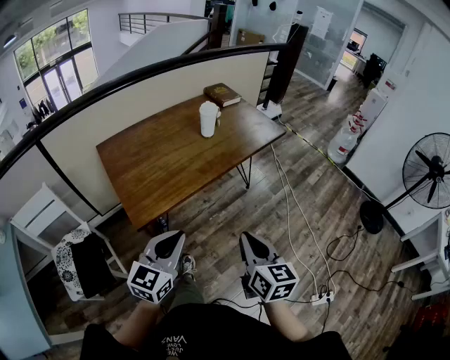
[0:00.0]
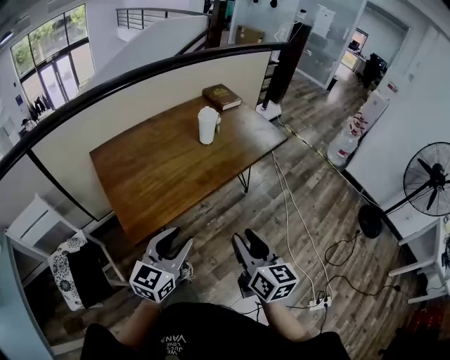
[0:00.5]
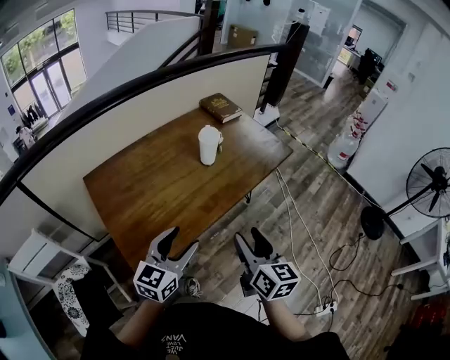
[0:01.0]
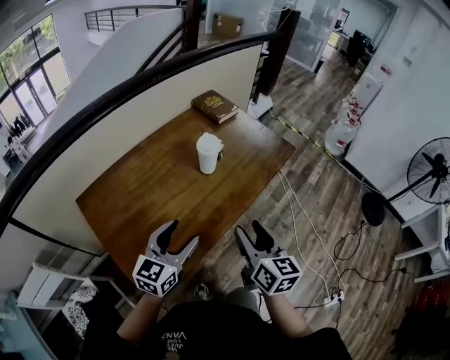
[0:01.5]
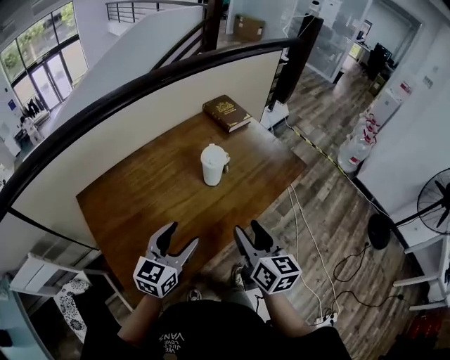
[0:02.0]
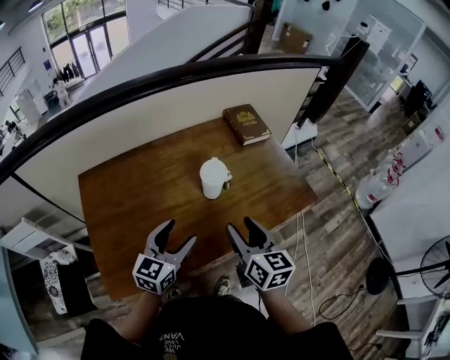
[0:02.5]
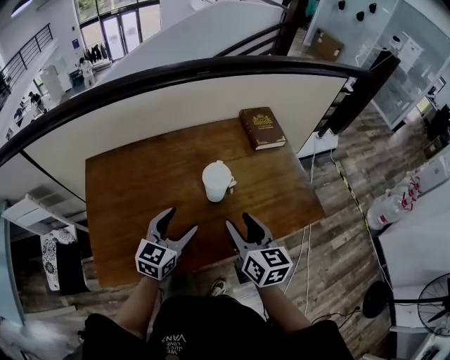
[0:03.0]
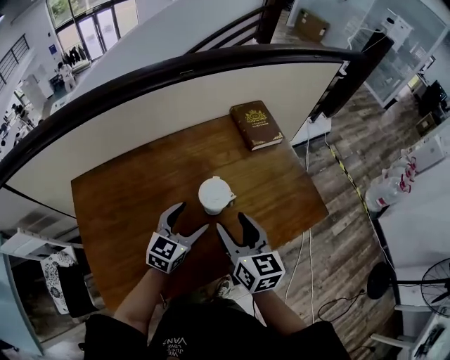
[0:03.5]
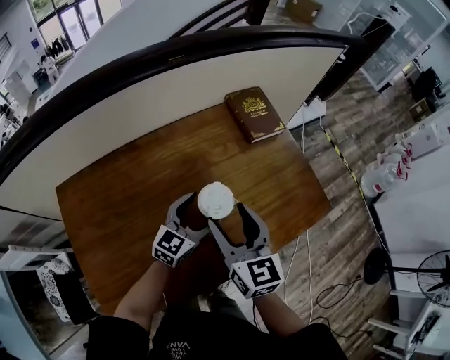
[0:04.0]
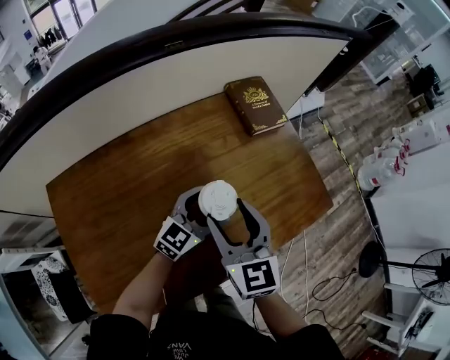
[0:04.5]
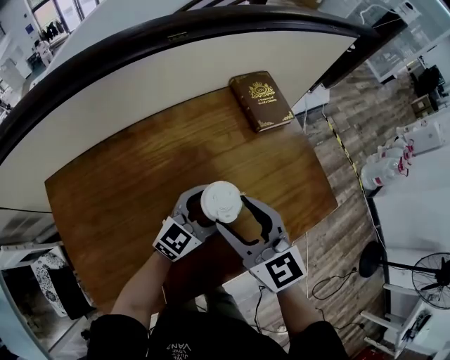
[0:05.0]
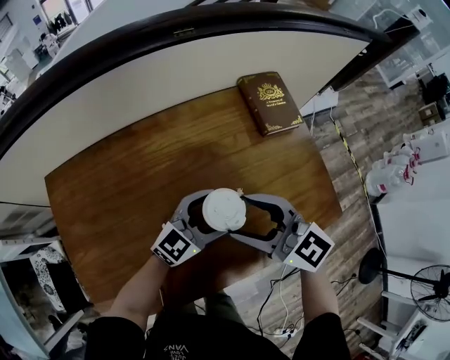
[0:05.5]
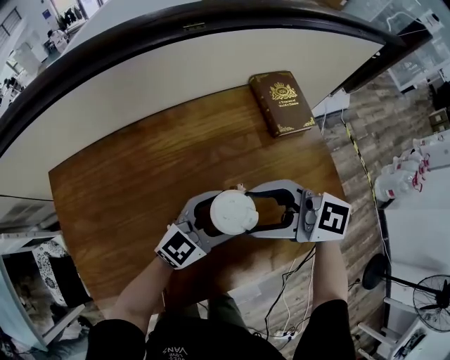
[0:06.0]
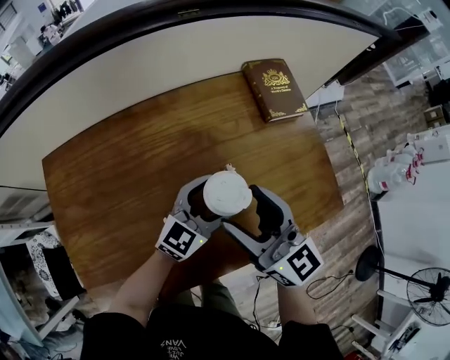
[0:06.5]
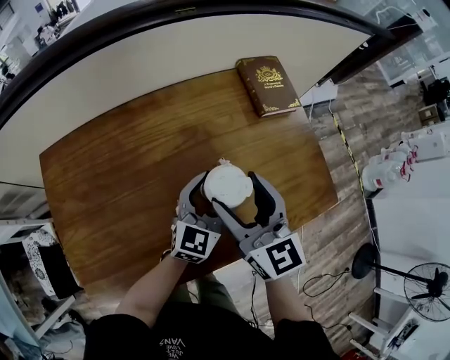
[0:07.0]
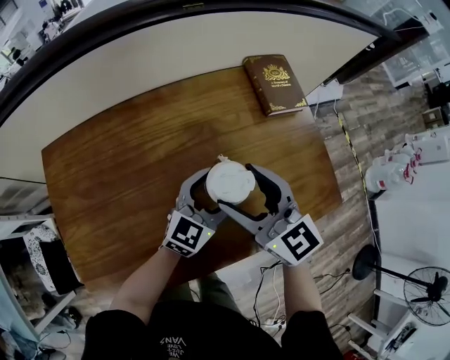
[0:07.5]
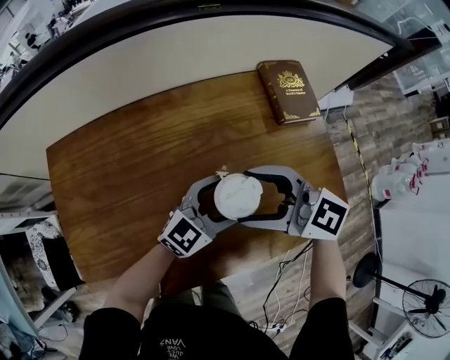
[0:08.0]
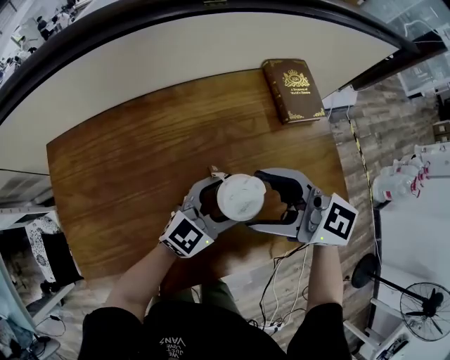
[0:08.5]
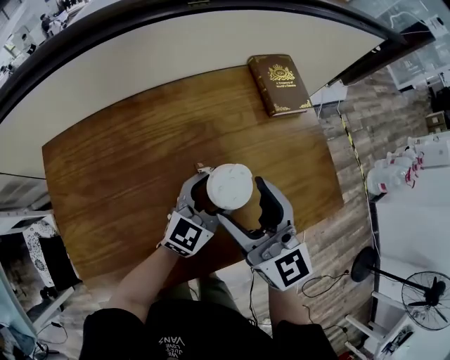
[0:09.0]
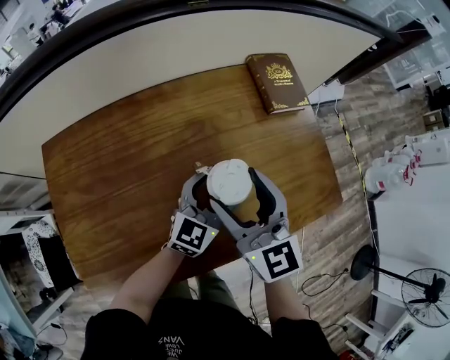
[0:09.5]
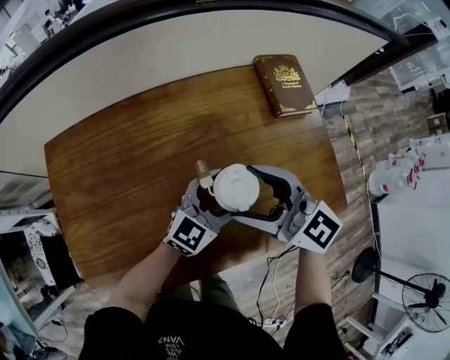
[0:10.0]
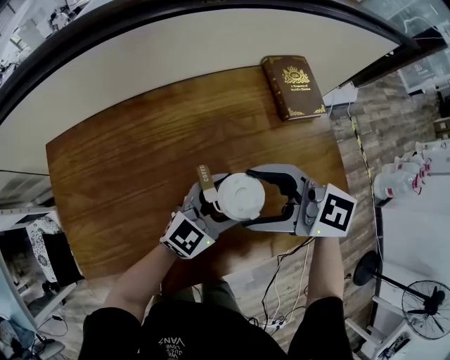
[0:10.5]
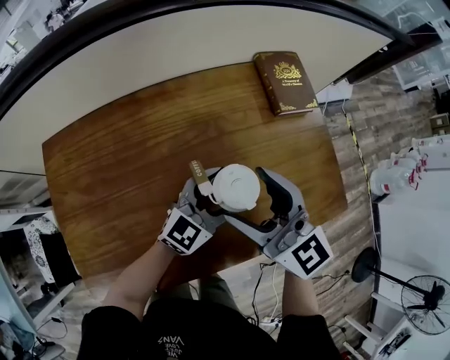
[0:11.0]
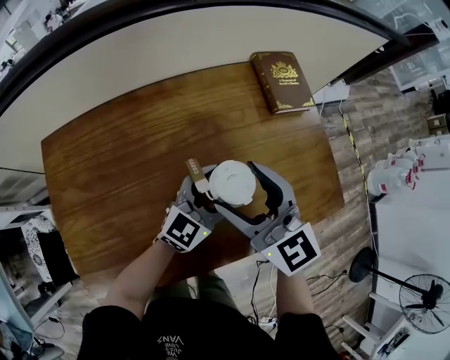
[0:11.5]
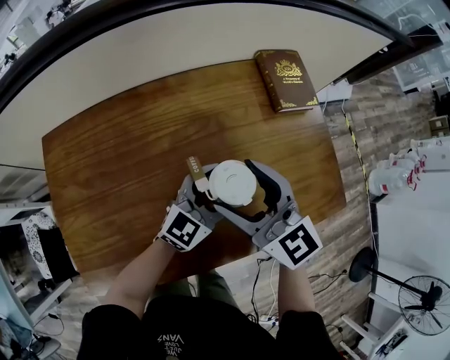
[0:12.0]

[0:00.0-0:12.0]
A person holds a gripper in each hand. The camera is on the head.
0:00.0 to 0:02.0: The two grippers go roughly 35 cm forward. The left gripper opens its fingers. Meanwhile the right gripper opens.
0:02.0 to 0:04.0: The left gripper is displaced forward, to the right and downward by some 30 cm, while the right gripper shifts some 25 cm forward, and changes its angle by approximately 20 degrees.
0:04.0 to 0:06.0: The right gripper turns by some 70 degrees.

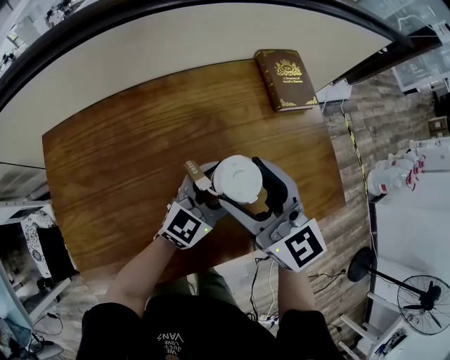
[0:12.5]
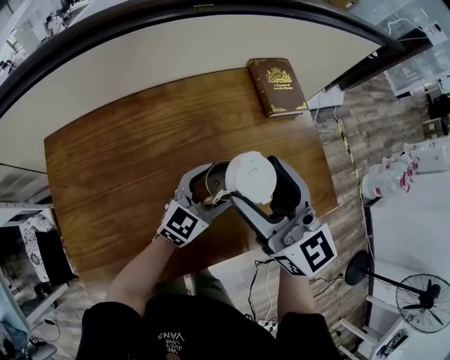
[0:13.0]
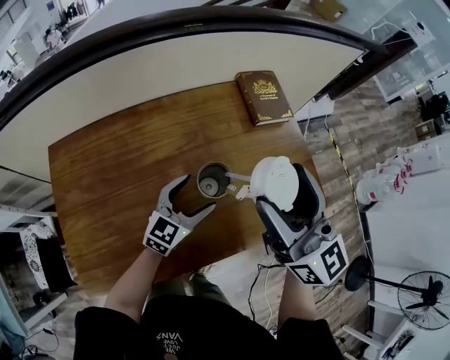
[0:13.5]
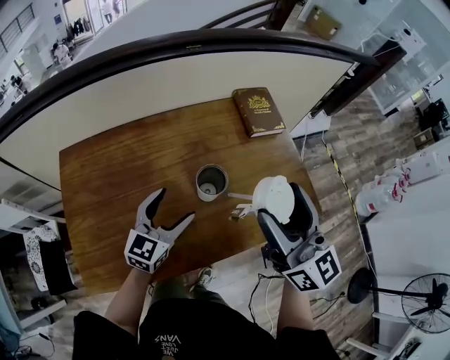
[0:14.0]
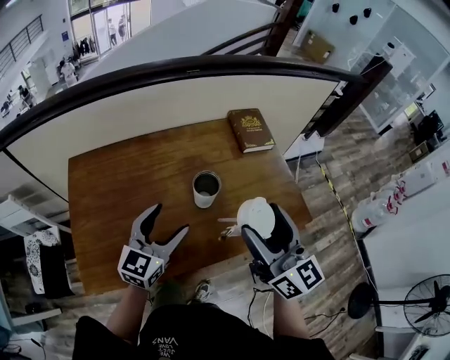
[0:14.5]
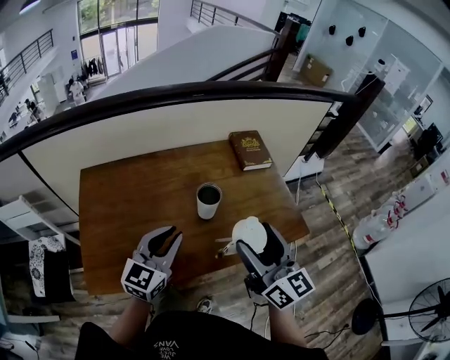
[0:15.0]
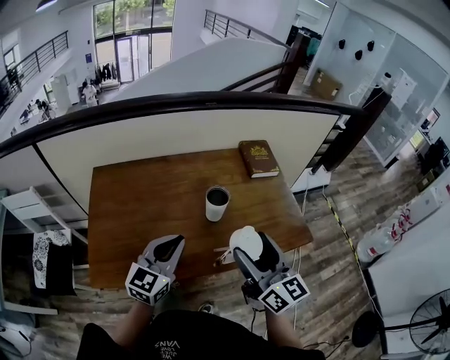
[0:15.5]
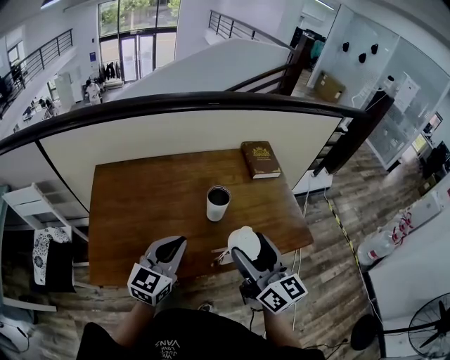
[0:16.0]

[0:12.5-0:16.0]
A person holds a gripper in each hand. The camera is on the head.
0:12.5 to 0:14.5: The left gripper shifts approximately 20 cm upward, backward and to the left, and rotates about 20 degrees; the right gripper travels backward, upward and to the right by roughly 20 cm, and rotates approximately 20 degrees.
0:14.5 to 0:16.0: Both grippers move backward, about 10 cm. The left gripper closes its fingers.

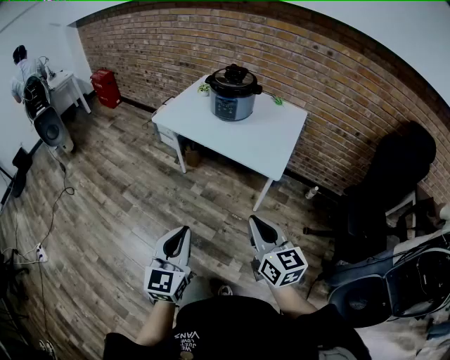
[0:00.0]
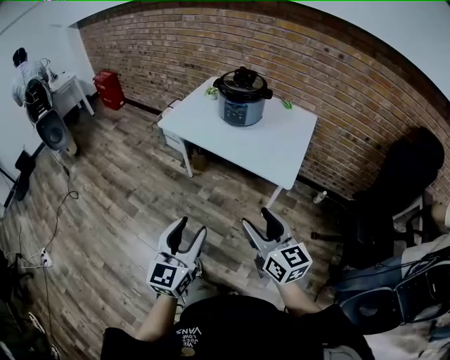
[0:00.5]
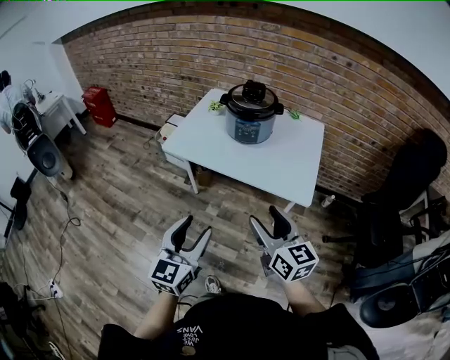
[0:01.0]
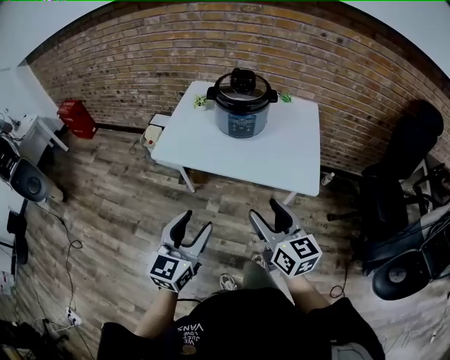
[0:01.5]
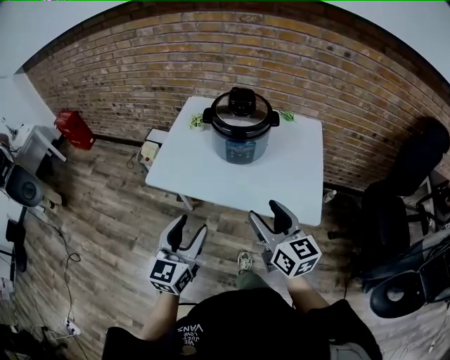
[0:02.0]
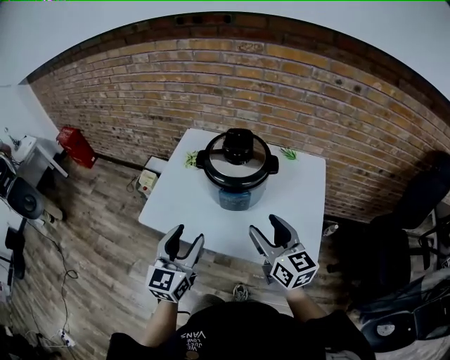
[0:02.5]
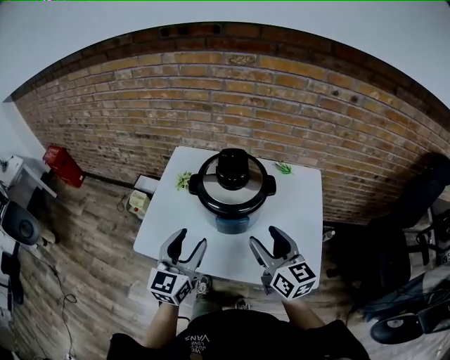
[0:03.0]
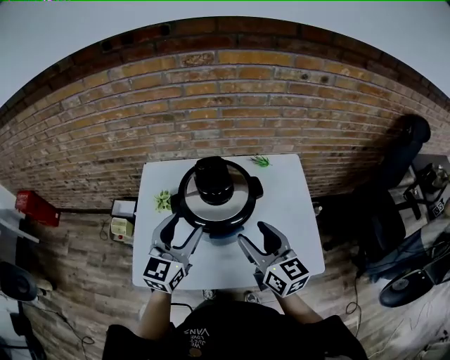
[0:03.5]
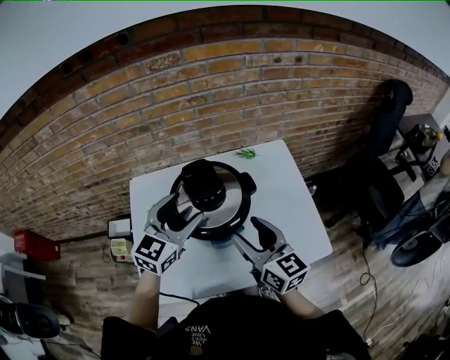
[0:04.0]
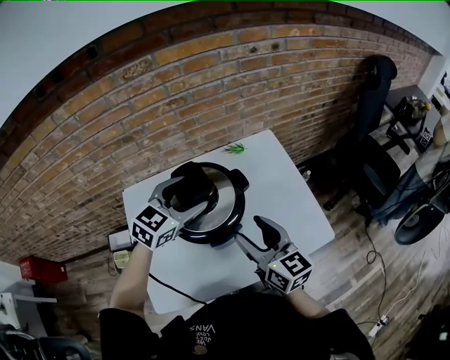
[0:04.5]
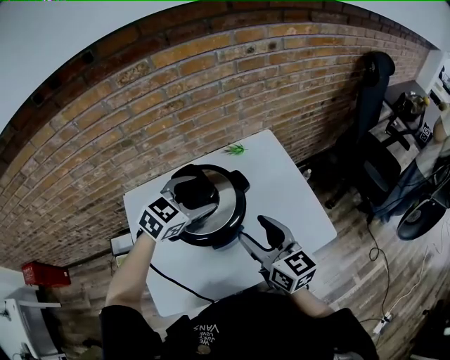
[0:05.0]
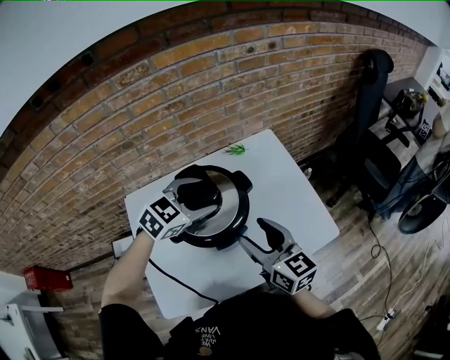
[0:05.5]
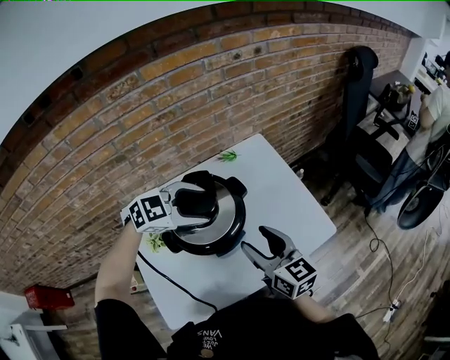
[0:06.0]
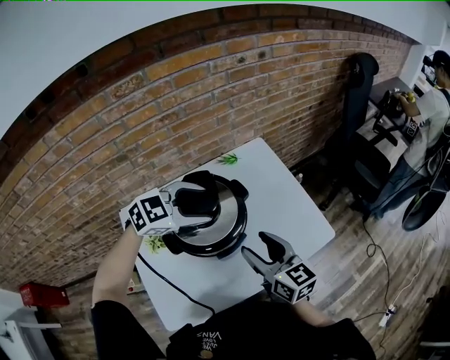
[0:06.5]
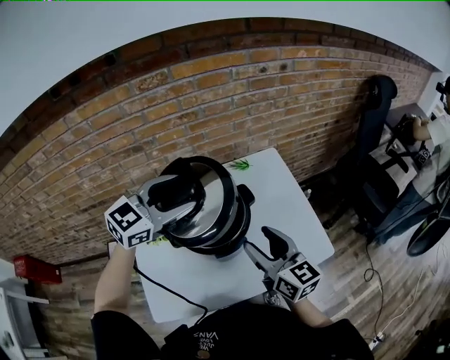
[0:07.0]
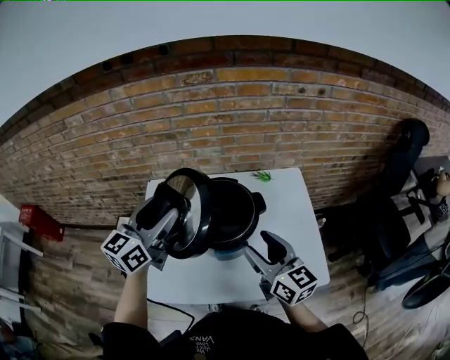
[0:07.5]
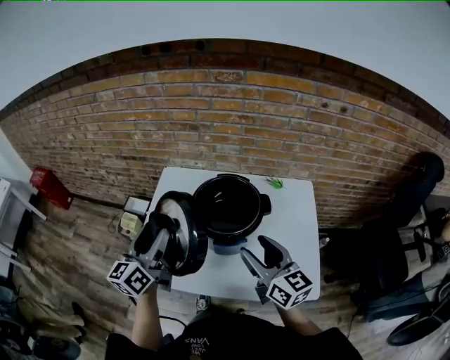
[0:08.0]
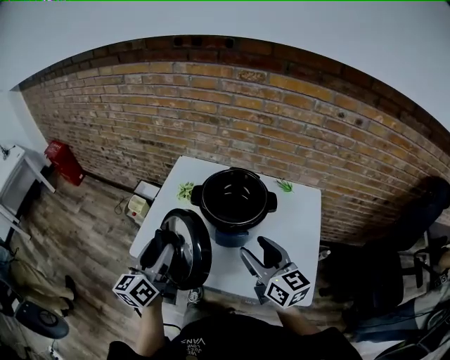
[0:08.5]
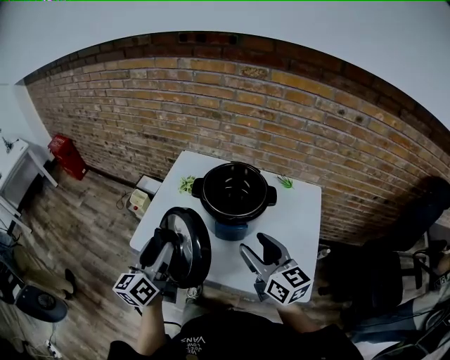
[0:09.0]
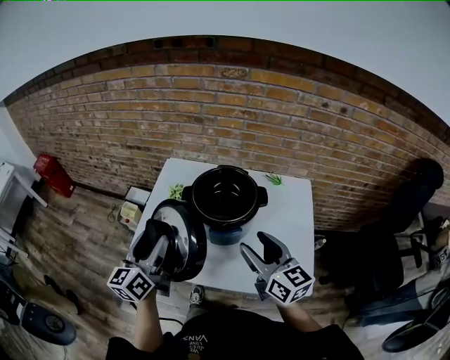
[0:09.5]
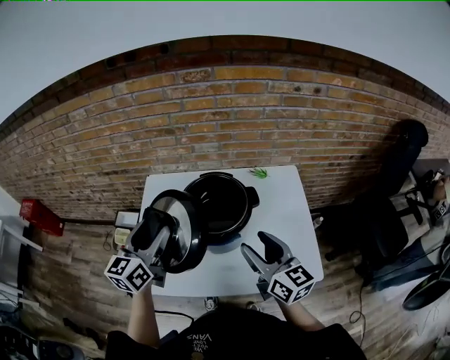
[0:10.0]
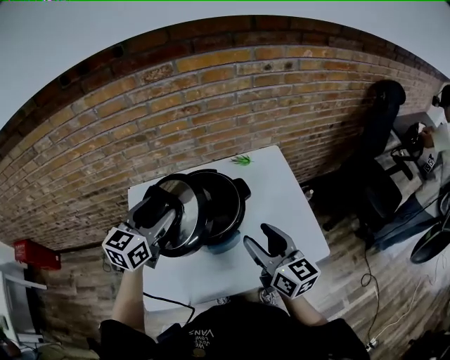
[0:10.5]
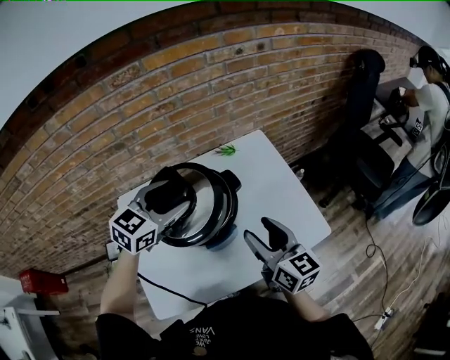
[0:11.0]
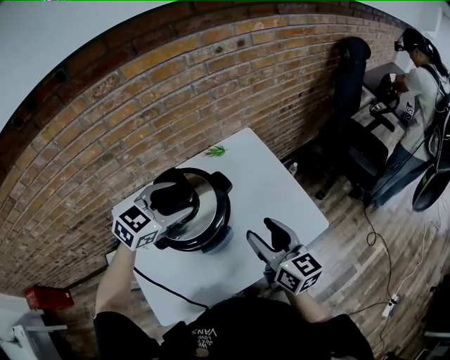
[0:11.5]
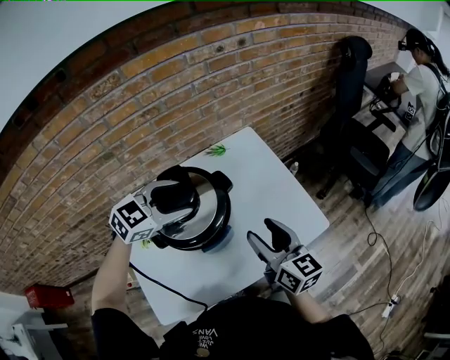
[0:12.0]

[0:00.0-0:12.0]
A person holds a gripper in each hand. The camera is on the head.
0:00.0 to 0:02.0: The grippers both shift forward by about 35 cm. The right gripper opens up, while the left gripper opens its fingers.
0:02.0 to 0:04.0: The left gripper ends up about 40 cm from where it was, and changes its angle by about 40 degrees. The right gripper shifts by some 25 cm, and swivels roughly 20 degrees.
0:04.0 to 0:06.0: The left gripper moves approximately 10 cm, and rotates about 60 degrees.
0:06.0 to 0:08.0: The left gripper moves about 25 cm, and angles its fingers upward, by roughly 40 degrees. The right gripper turns by roughly 30 degrees.
0:08.0 to 0:10.0: The left gripper goes backward and returns, roughly 10 cm each way.
0:10.0 to 0:12.0: The right gripper moves approximately 5 cm, and changes its angle by about 30 degrees; the left gripper shifts by about 20 cm, and changes its angle by approximately 80 degrees.
